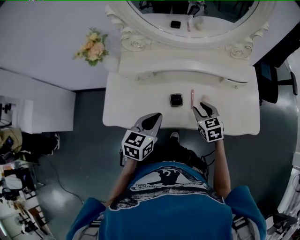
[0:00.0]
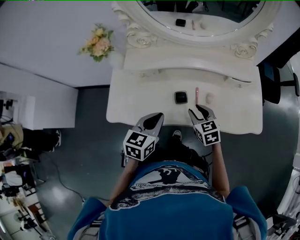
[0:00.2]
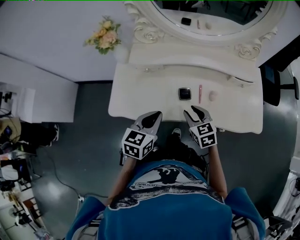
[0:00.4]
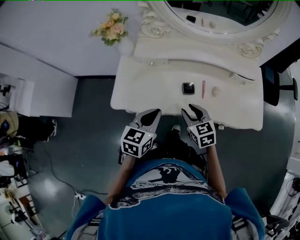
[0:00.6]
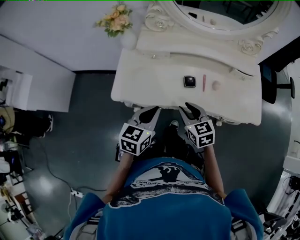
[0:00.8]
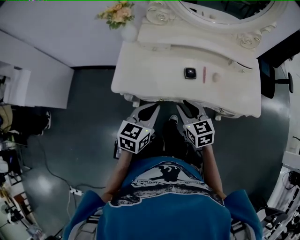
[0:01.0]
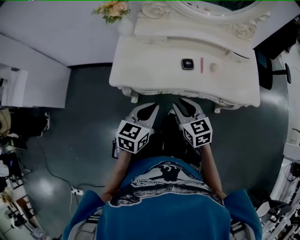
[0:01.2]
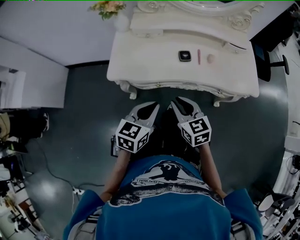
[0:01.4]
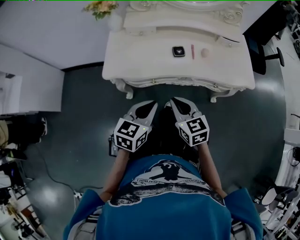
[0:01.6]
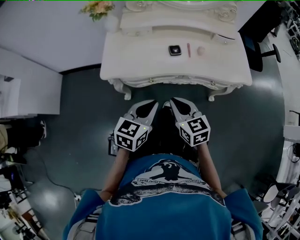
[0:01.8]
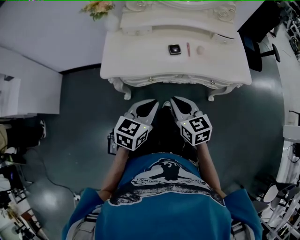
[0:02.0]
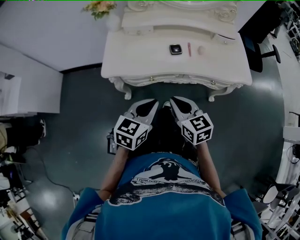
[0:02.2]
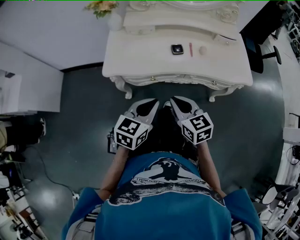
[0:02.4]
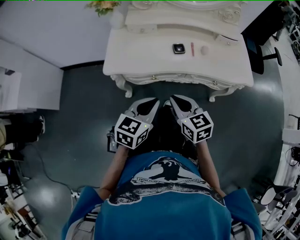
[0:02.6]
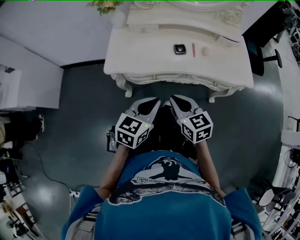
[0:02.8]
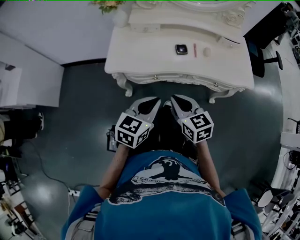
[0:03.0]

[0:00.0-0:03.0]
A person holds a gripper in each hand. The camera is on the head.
0:00.0 to 0:01.6: The left gripper heads backward, covering roughly 20 cm, while the right gripper heads backward and to the left, covering roughly 30 cm, and closes its fingers.
0:01.6 to 0:03.0: The grippers move only a little.

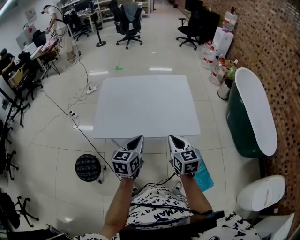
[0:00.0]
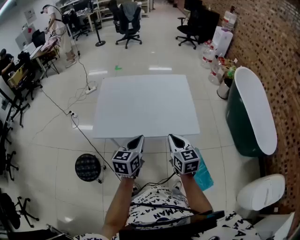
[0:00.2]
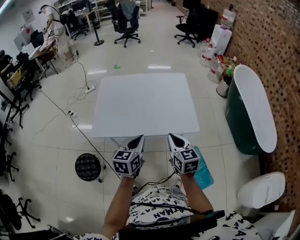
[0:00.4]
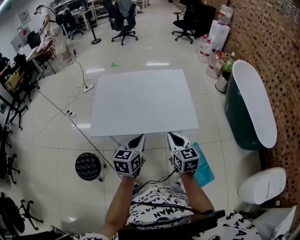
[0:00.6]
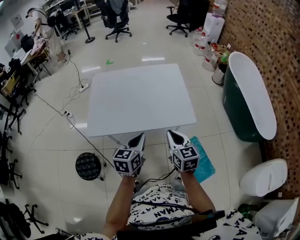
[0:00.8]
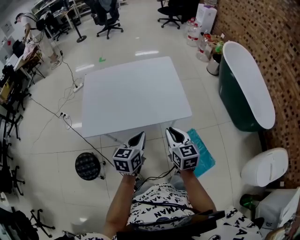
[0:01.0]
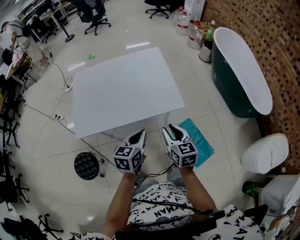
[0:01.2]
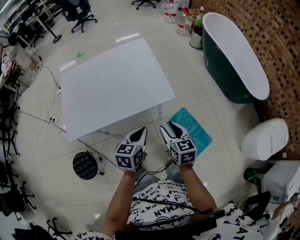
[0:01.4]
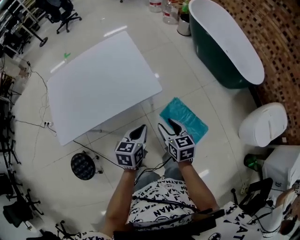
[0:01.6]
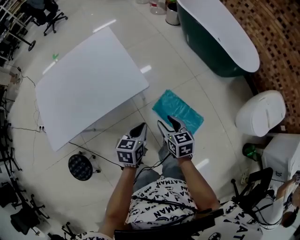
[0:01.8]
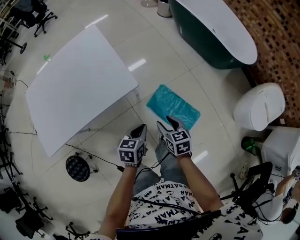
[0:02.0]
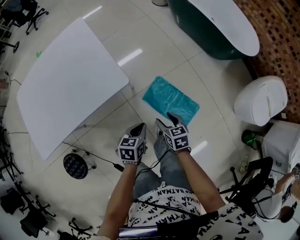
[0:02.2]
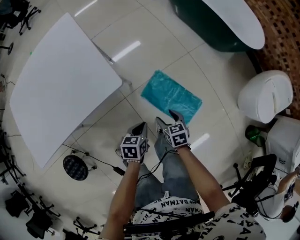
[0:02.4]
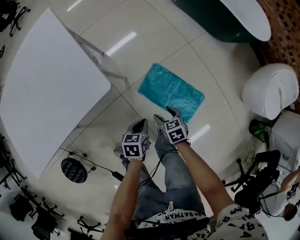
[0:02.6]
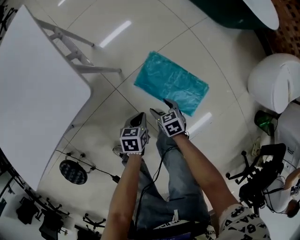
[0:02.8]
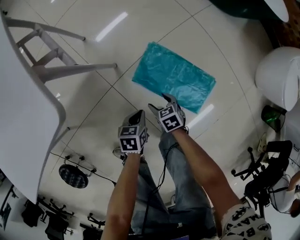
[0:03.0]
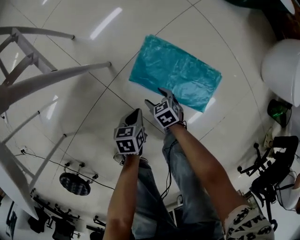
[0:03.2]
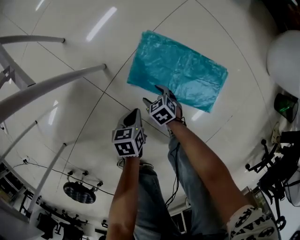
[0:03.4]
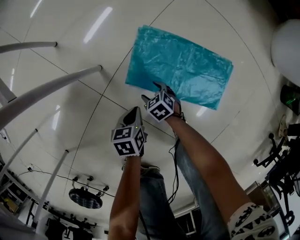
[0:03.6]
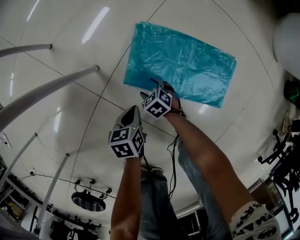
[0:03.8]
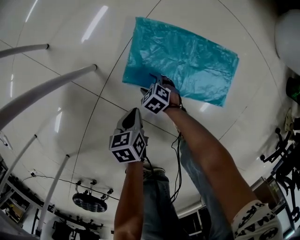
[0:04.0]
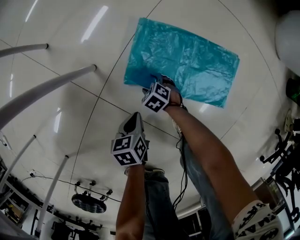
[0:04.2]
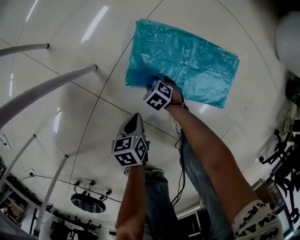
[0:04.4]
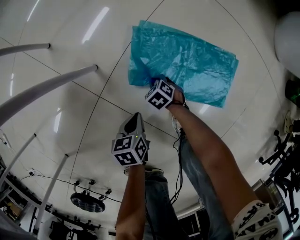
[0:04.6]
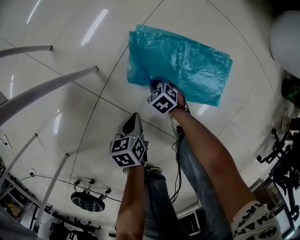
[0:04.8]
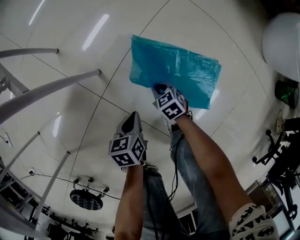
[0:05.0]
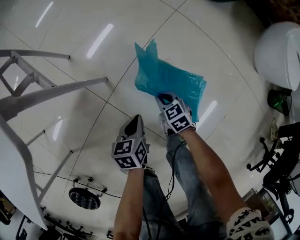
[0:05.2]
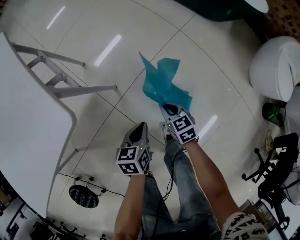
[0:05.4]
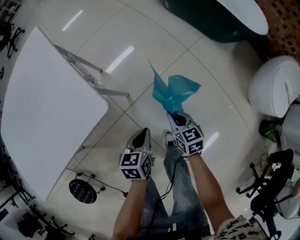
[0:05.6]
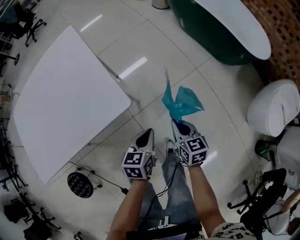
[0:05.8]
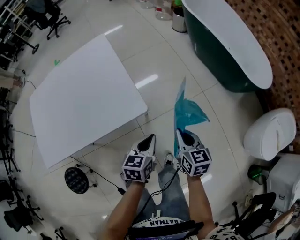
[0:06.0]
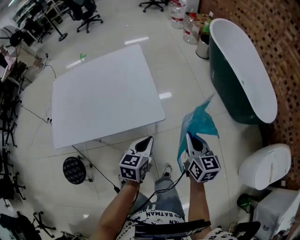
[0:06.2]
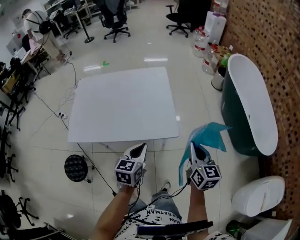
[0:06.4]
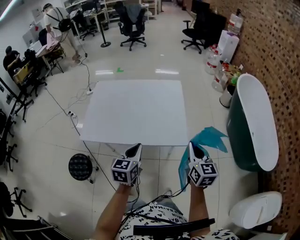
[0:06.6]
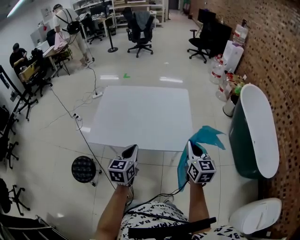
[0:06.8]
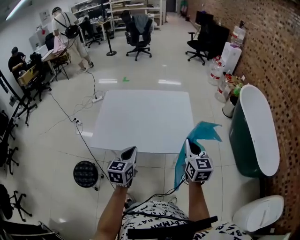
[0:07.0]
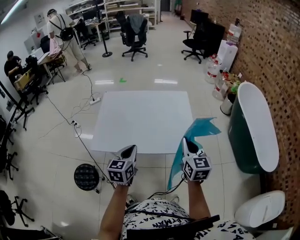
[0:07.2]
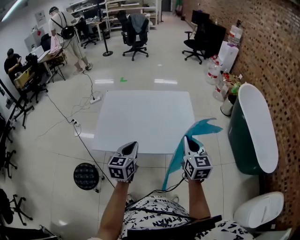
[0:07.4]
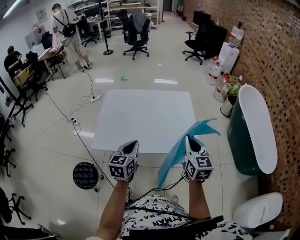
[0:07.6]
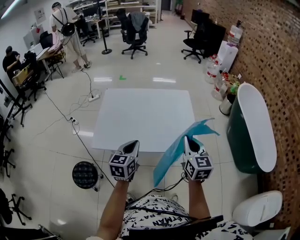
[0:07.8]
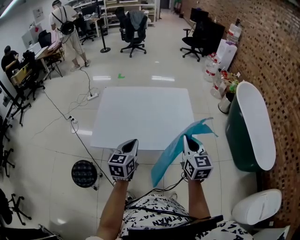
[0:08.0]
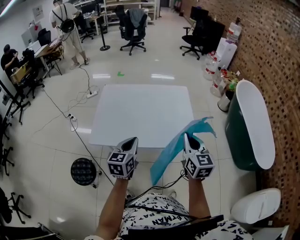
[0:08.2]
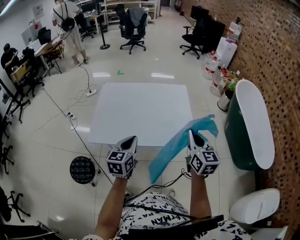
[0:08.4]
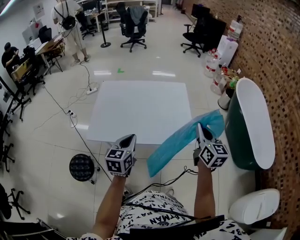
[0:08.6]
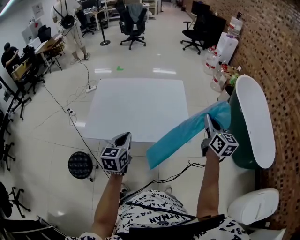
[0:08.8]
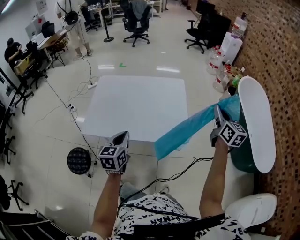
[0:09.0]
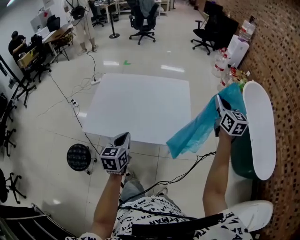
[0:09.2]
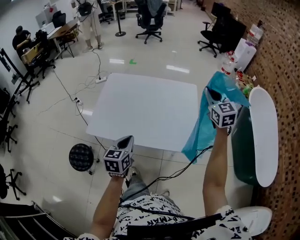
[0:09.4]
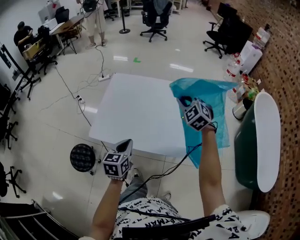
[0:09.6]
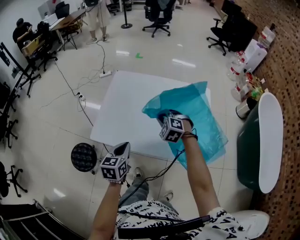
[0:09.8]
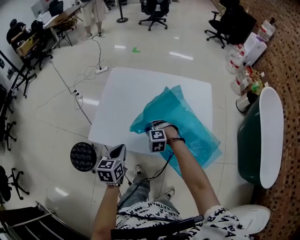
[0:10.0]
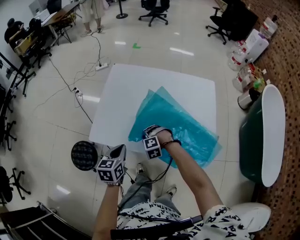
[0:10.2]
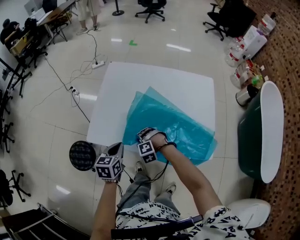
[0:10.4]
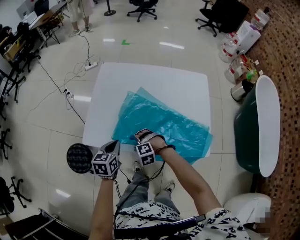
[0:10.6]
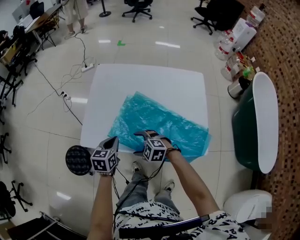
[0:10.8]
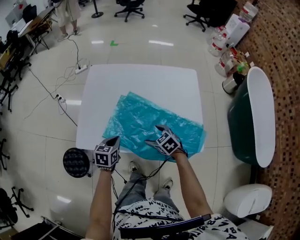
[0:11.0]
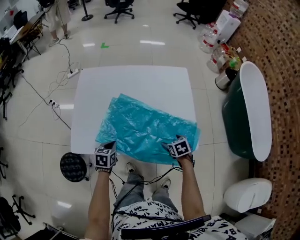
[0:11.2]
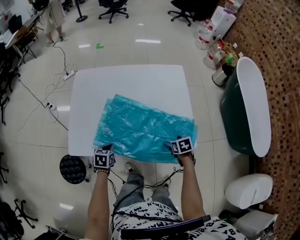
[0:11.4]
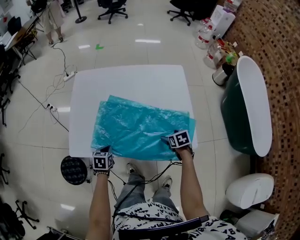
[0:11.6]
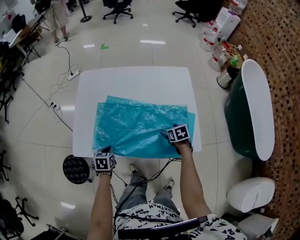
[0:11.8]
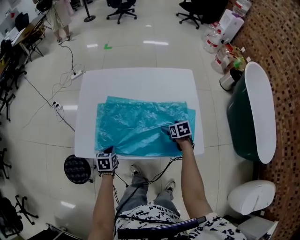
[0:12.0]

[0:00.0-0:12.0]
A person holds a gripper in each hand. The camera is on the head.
0:00.0 to 0:01.6: The two grippers go roughly 25 cm to the right and downward. The right gripper swivels roughly 30 degrees, and opens up. Meanwhile the left gripper changes its angle by approximately 30 degrees.
0:01.6 to 0:03.0: Both grippers travel together downward, roughly 50 cm. The right gripper rotates roughly 30 degrees. The left gripper turns by roughly 30 degrees.
0:03.0 to 0:04.4: Both grippers move downward, approximately 25 cm. The right gripper closes its fingers.
0:04.4 to 0:06.0: The two grippers go roughly 70 cm upward. The left gripper swivels roughly 30 degrees, while the right gripper angles its fingers upward, by some 40 degrees, and closes up.
0:06.0 to 0:07.6: The right gripper changes place by approximately 40 cm, and swivels approximately 30 degrees. The left gripper moves roughly 50 cm, and turns by approximately 40 degrees.
0:07.6 to 0:09.0: The right gripper travels to the right and forward by some 25 cm, while the left gripper is displaced to the right by some 5 cm.
0:09.0 to 0:10.4: The right gripper shifts about 70 cm to the left and downward, and tilts its fingers roughly 60 degrees downward. The left gripper shifts roughly 25 cm downward, to the left and forward.
0:10.4 to 0:12.0: The right gripper moves roughly 30 cm, twists about 110 degrees clockwise, seen from behind, and opens up. The left gripper moves downward, approximately 15 cm.

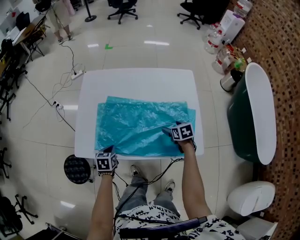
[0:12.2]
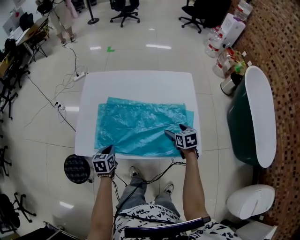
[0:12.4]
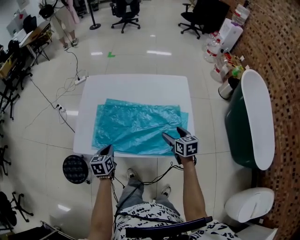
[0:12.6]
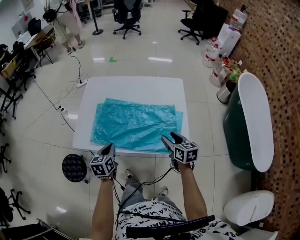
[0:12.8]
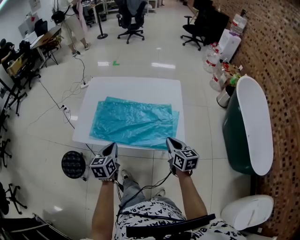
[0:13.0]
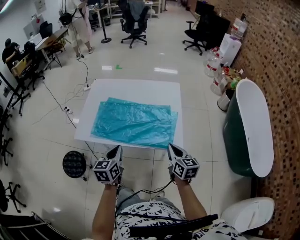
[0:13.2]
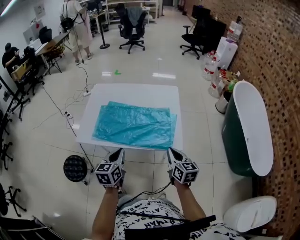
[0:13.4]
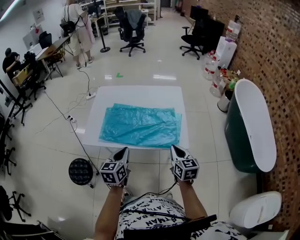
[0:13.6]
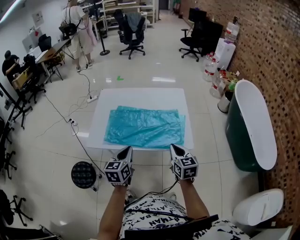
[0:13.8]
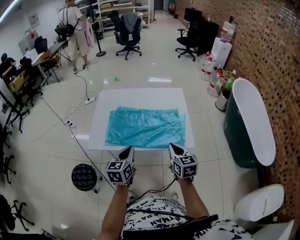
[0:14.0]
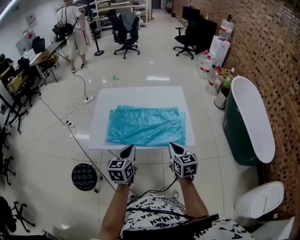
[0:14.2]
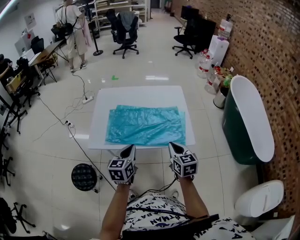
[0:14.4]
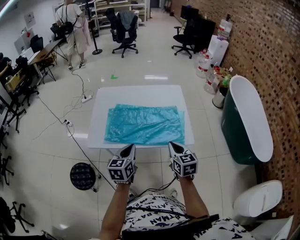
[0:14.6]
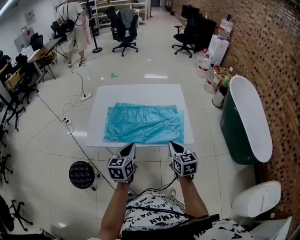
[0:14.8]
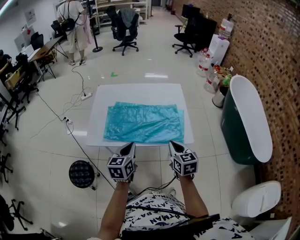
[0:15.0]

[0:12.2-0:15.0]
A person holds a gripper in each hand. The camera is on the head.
0:12.2 to 0:13.6: The left gripper travels upward, backward and to the right by roughly 30 cm, and tips its fingers upward by about 30 degrees. Meanwhile the right gripper is displaced backward and upward by some 35 cm, angles its fingers upward, by approximately 40 degrees, and closes up.
0:13.6 to 0:15.0: The right gripper heads to the left, covering about 5 cm.

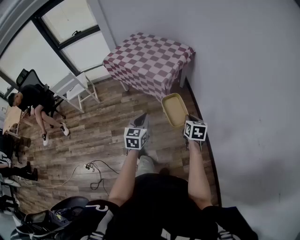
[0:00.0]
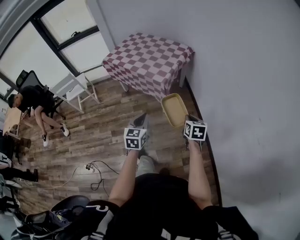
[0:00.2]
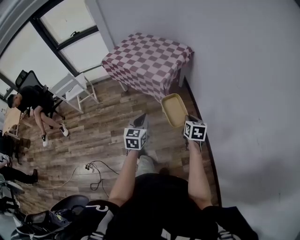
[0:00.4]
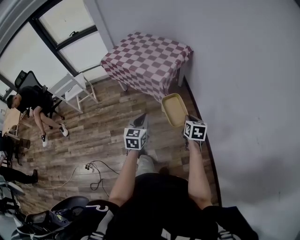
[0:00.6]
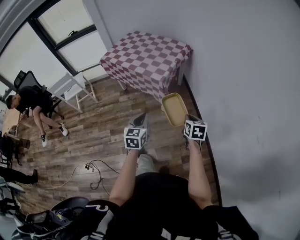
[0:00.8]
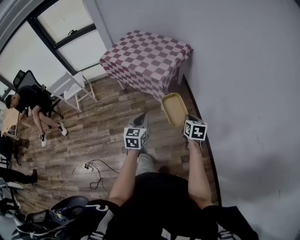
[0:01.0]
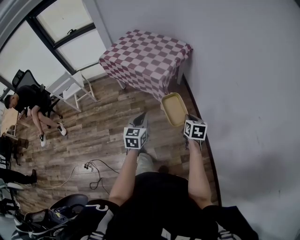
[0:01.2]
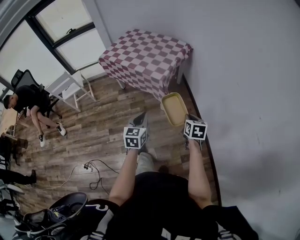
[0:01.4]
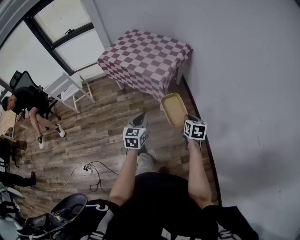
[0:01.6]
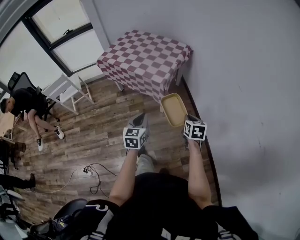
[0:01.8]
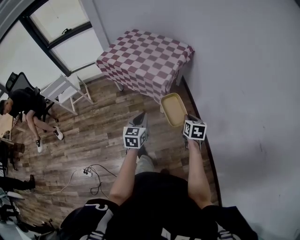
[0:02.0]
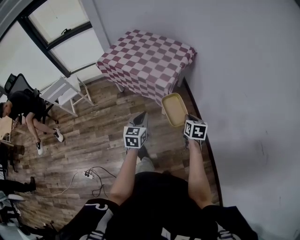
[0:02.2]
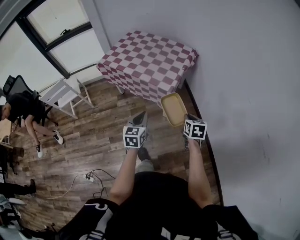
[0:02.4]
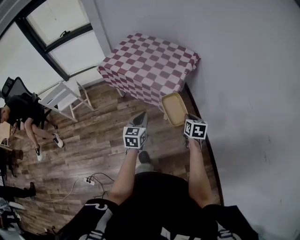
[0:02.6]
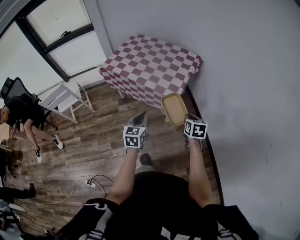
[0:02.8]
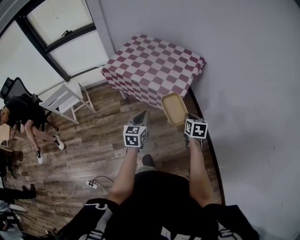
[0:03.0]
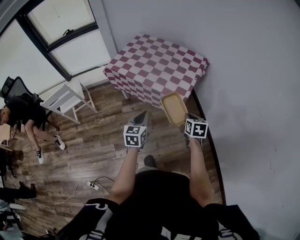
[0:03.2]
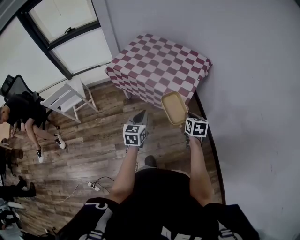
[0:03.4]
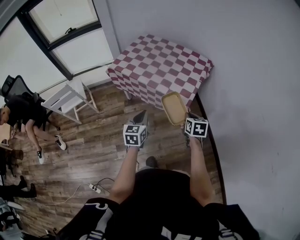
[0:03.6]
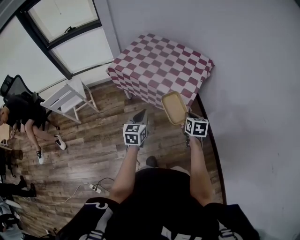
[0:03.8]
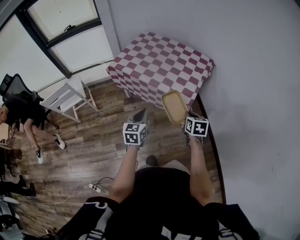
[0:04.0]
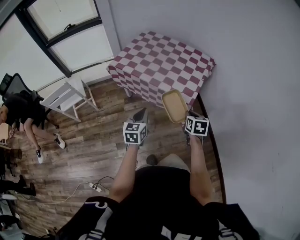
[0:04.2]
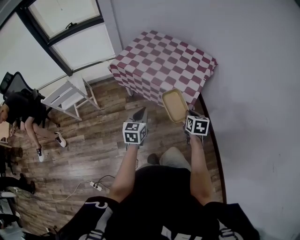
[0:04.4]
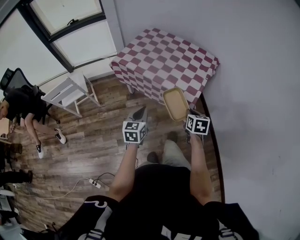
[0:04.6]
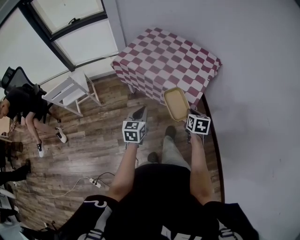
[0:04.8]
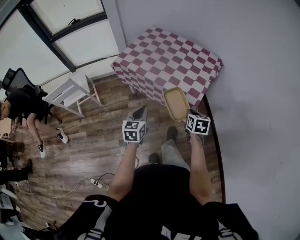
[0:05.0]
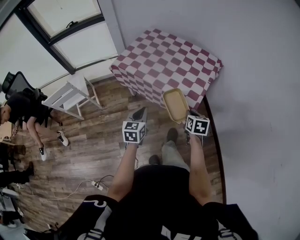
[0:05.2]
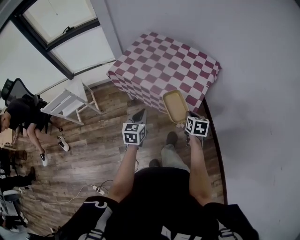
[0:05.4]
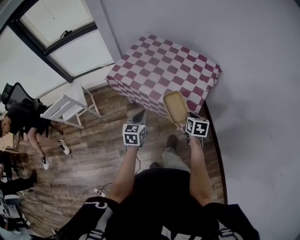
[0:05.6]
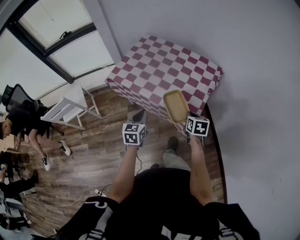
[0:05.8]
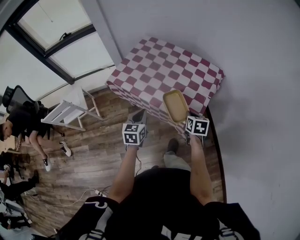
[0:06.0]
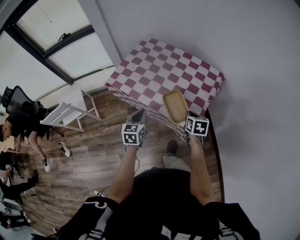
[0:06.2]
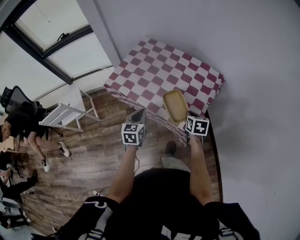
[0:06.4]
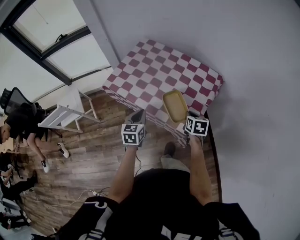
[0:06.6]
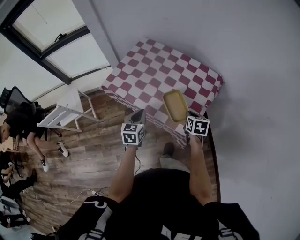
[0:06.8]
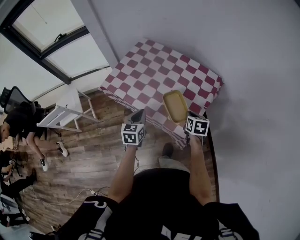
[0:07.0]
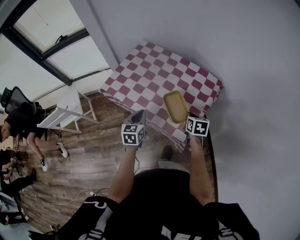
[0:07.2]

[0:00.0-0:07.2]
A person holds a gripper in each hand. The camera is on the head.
0:00.0 to 0:01.4: The grippers move only a little.
0:01.4 to 0:02.8: Both grippers travel together forward and to the left, roughly 25 cm.
0:02.8 to 0:04.4: The two grippers go roughly 15 cm to the left and forward.
0:04.4 to 0:05.8: The grippers both shift forward by some 15 cm.
0:05.8 to 0:07.2: Both grippers travel together forward, roughly 15 cm.
